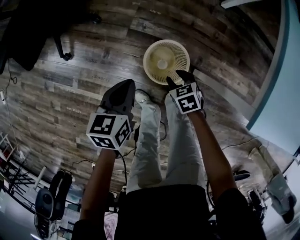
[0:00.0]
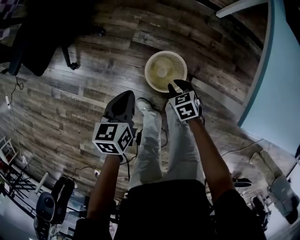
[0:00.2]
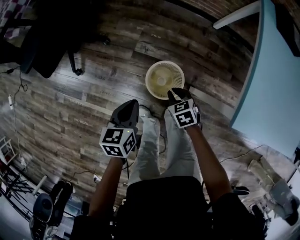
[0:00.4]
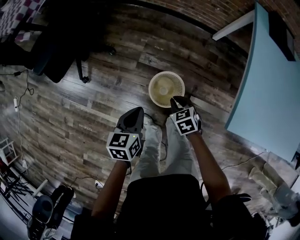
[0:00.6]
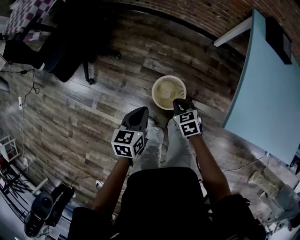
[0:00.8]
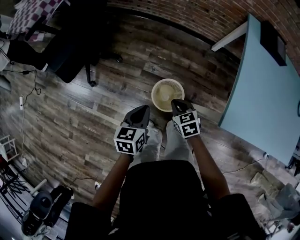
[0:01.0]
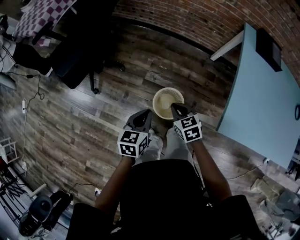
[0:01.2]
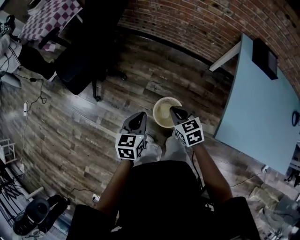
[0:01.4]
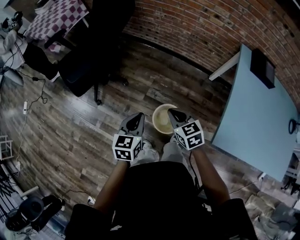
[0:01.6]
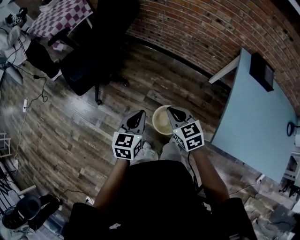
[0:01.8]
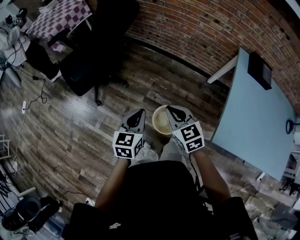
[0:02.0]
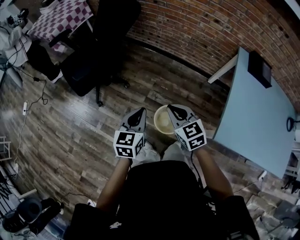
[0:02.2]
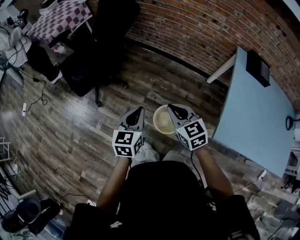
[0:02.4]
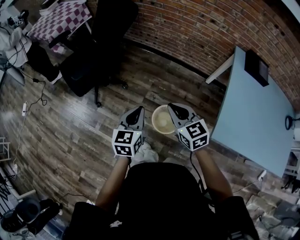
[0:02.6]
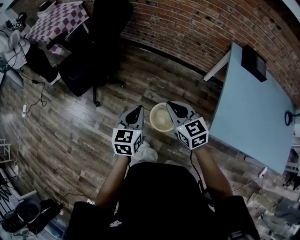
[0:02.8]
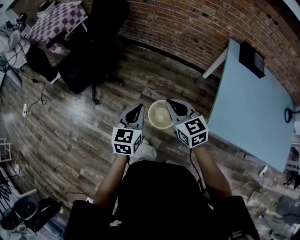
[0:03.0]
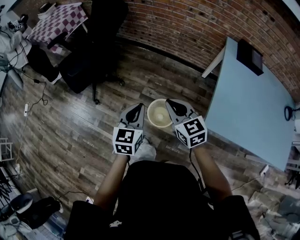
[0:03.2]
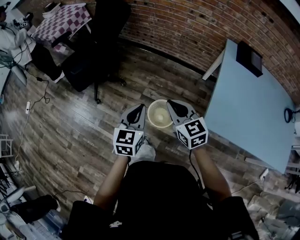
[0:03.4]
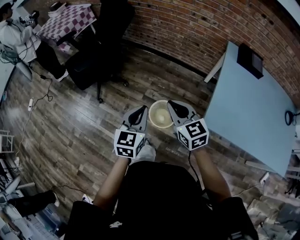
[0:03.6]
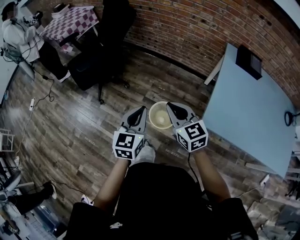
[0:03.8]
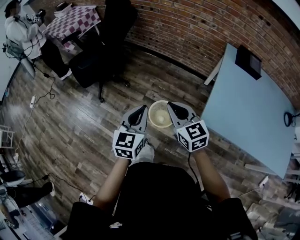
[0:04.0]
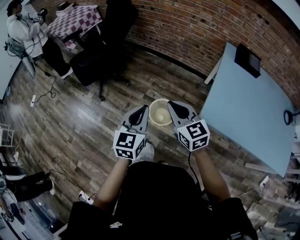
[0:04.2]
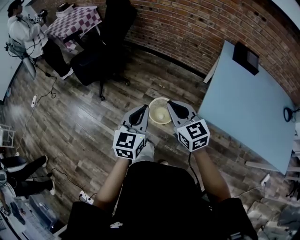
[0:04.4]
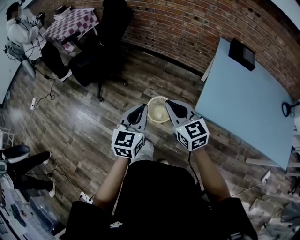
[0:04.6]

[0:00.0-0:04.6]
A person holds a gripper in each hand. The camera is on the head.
0:00.0 to 0:01.6: The grippers both shift upward by some 35 cm. The right gripper rotates approximately 30 degrees, and closes its fingers.
0:01.6 to 0:03.0: Both grippers move upward and backward, about 10 cm.
0:03.0 to 0:04.6: The right gripper travels backward by roughly 20 cm; the left gripper goes roughly 20 cm backward and upward.

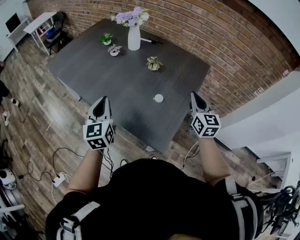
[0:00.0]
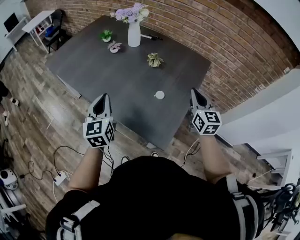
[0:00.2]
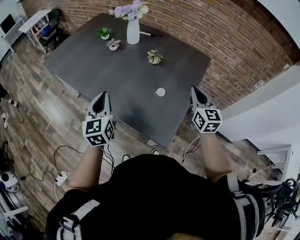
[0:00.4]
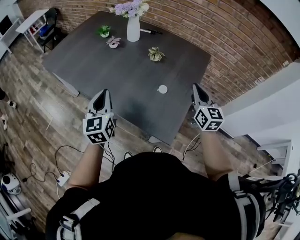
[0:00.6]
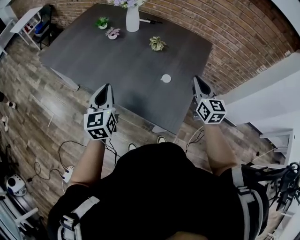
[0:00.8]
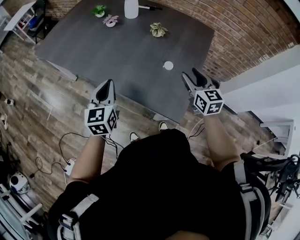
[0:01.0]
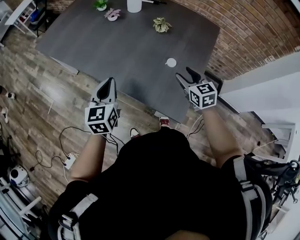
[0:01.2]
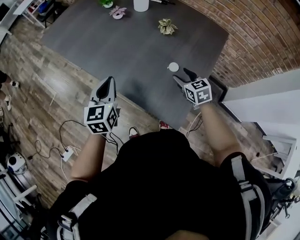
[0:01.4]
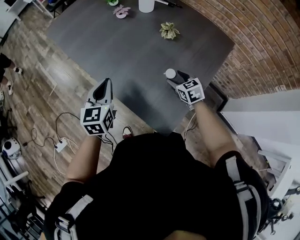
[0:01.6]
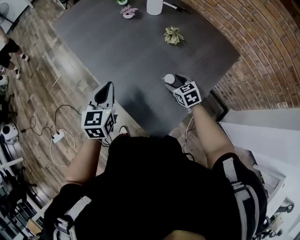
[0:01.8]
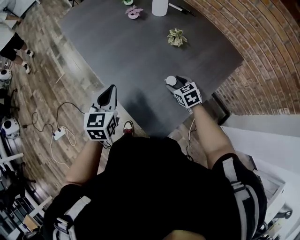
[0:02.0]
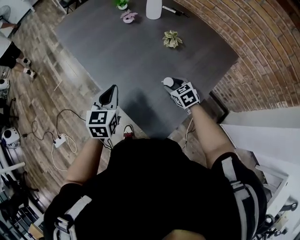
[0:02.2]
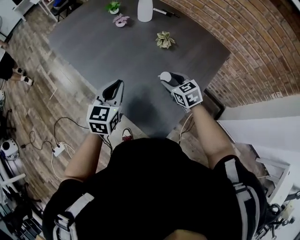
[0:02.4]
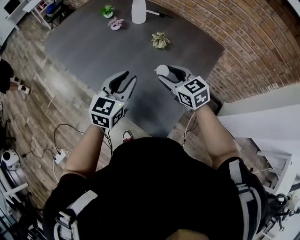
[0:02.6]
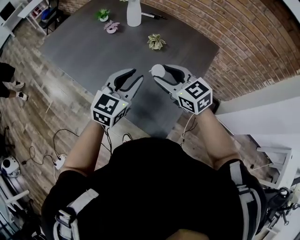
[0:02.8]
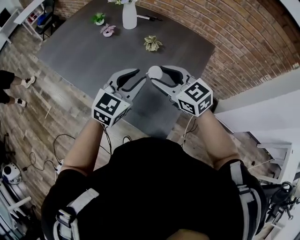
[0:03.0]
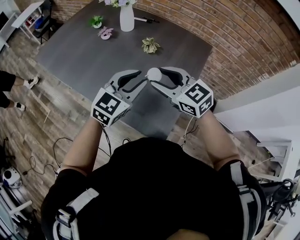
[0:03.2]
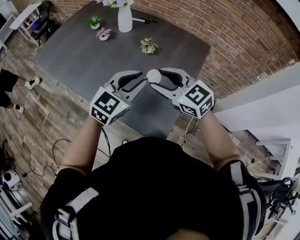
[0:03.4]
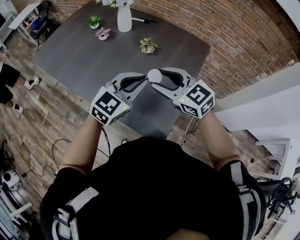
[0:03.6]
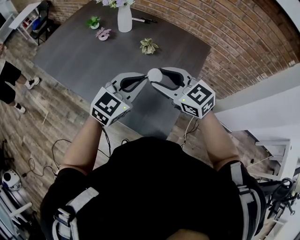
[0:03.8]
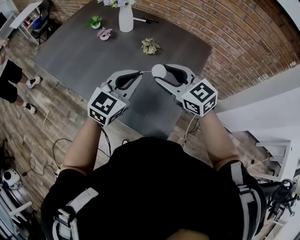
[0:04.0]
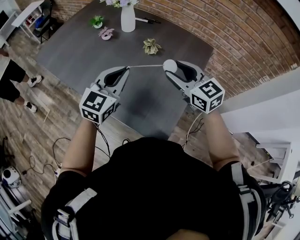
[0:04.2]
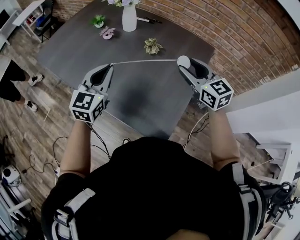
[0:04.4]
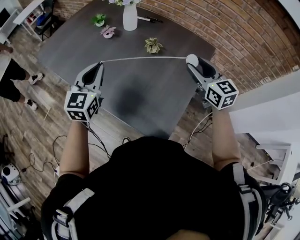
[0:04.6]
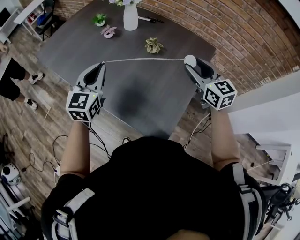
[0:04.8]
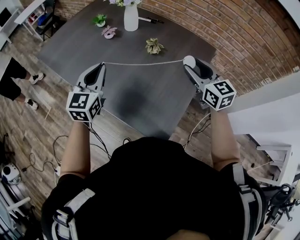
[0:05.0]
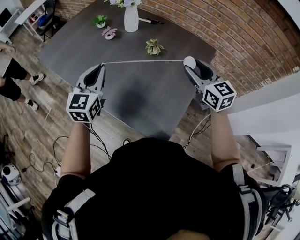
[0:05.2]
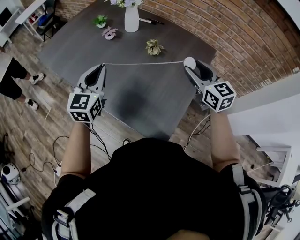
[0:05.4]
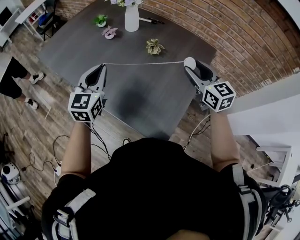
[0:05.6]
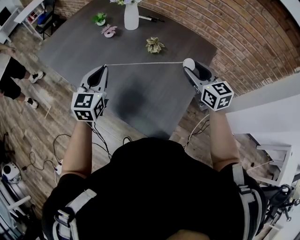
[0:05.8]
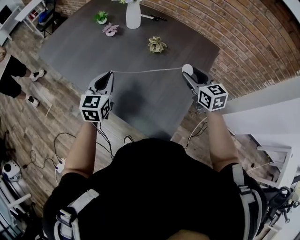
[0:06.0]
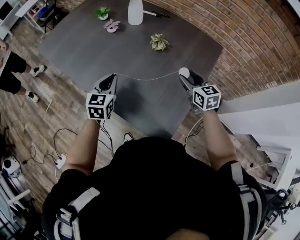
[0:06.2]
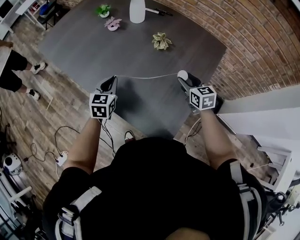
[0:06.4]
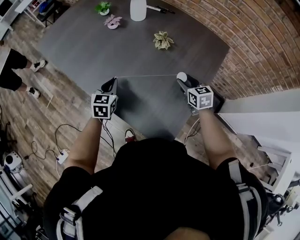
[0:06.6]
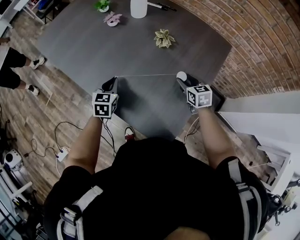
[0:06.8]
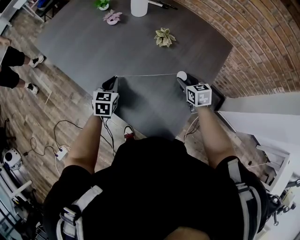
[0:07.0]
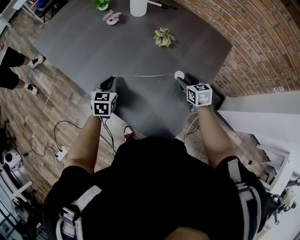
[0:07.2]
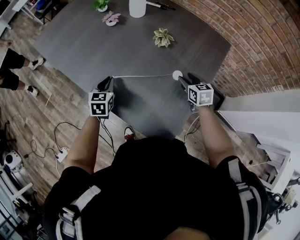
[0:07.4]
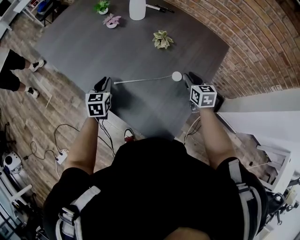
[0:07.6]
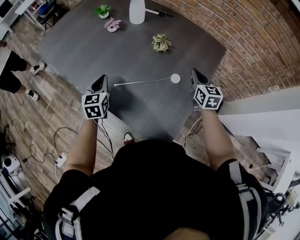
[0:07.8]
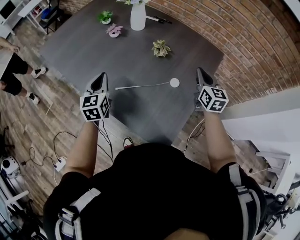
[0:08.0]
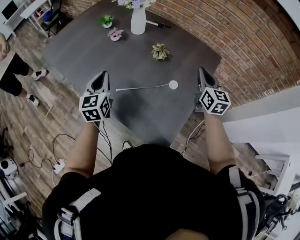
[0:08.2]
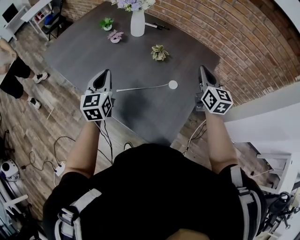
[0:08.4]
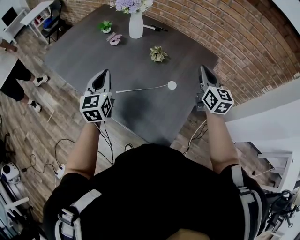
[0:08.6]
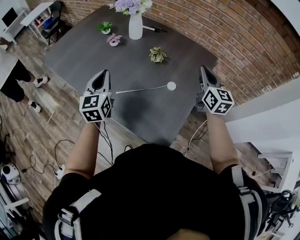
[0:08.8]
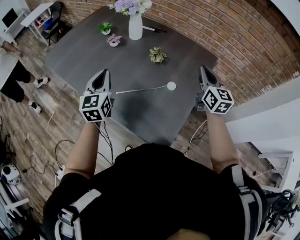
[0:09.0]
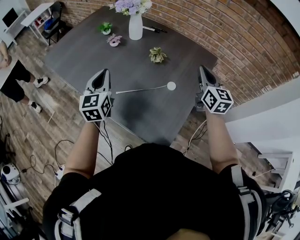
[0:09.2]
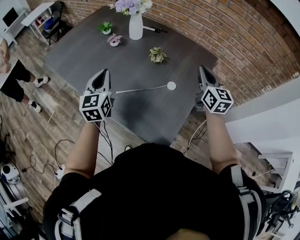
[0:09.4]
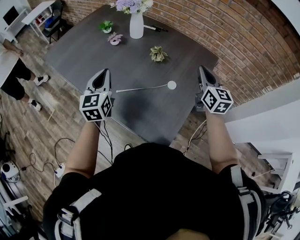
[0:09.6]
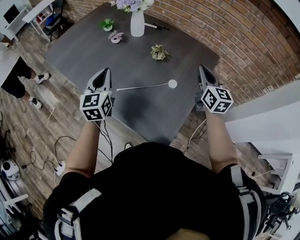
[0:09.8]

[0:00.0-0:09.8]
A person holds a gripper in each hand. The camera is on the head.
0:00.0 to 0:01.4: The left gripper travels downward by approximately 5 cm; the right gripper shifts some 20 cm downward and to the left, swivels approximately 30 degrees, and opens its fingers.
0:01.4 to 0:02.8: The left gripper goes about 20 cm to the right and upward, turns by about 30 degrees, and opens up. Meanwhile the right gripper is displaced upward by some 15 cm, and turns by some 30 degrees.
0:02.8 to 0:04.2: The left gripper closes its fingers. Meanwhile the right gripper is displaced to the right by about 5 cm.
0:04.2 to 0:05.6: The right gripper travels to the right by roughly 5 cm. The left gripper shifts about 10 cm to the left.
0:05.6 to 0:07.0: The two grippers go about 25 cm downward. The right gripper changes its angle by approximately 30 degrees. Meanwhile the left gripper swivels some 30 degrees.
0:07.0 to 0:08.4: Both grippers travel together upward, approximately 20 cm. The left gripper changes its angle by about 30 degrees, while the right gripper angles its fingers upward, by roughly 30 degrees, and closes up.
0:08.4 to 0:09.8: The grippers stay close to where they were, moving slightly.

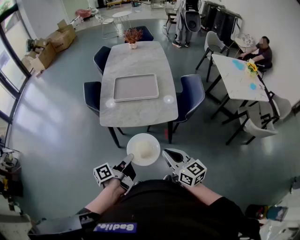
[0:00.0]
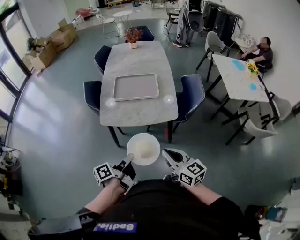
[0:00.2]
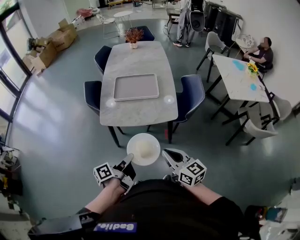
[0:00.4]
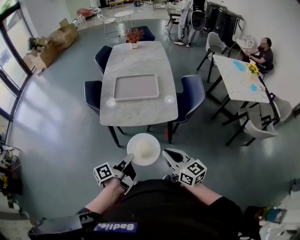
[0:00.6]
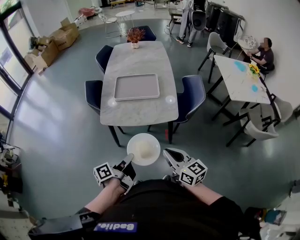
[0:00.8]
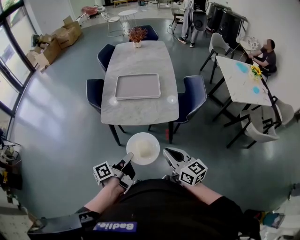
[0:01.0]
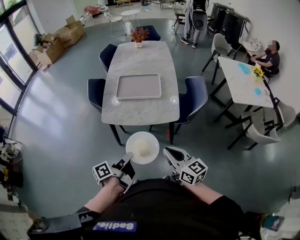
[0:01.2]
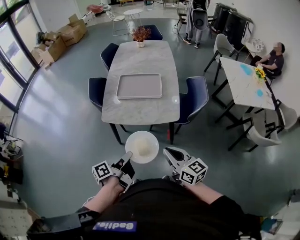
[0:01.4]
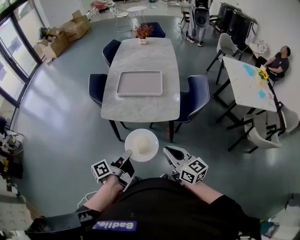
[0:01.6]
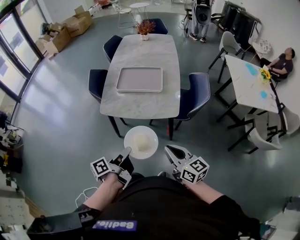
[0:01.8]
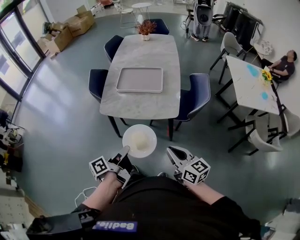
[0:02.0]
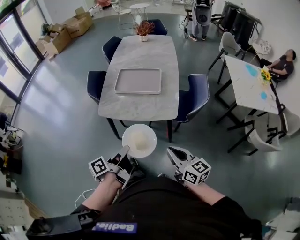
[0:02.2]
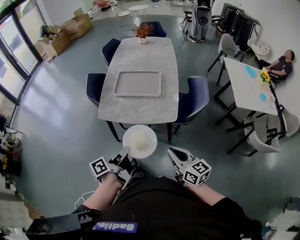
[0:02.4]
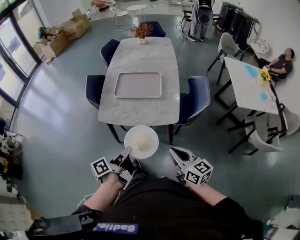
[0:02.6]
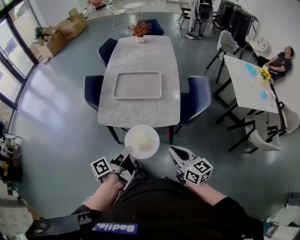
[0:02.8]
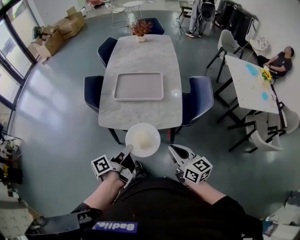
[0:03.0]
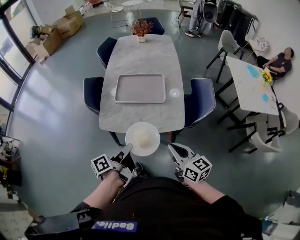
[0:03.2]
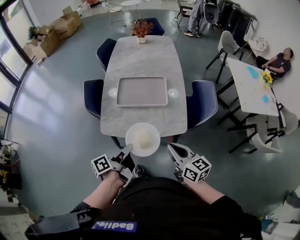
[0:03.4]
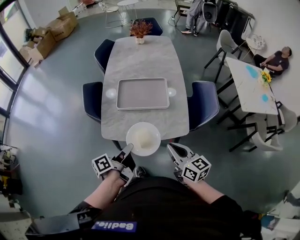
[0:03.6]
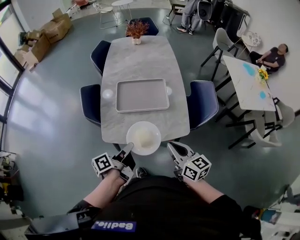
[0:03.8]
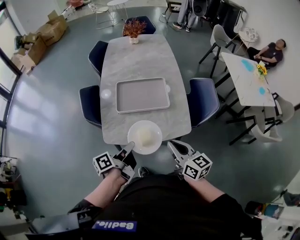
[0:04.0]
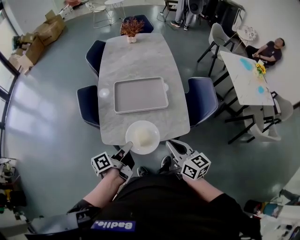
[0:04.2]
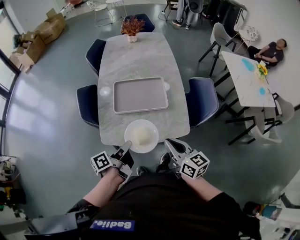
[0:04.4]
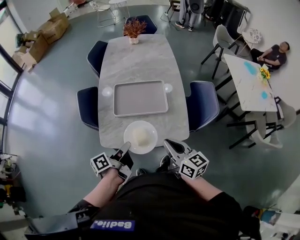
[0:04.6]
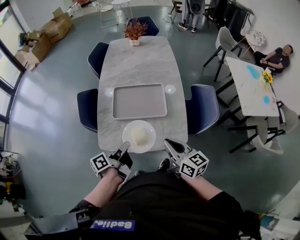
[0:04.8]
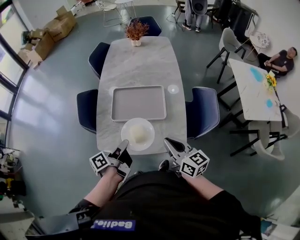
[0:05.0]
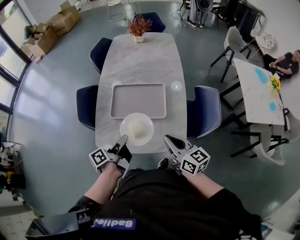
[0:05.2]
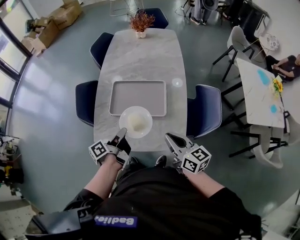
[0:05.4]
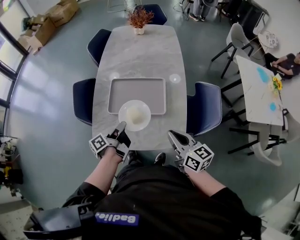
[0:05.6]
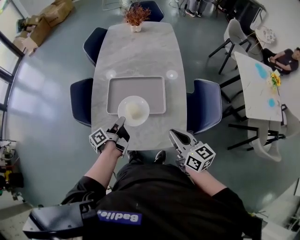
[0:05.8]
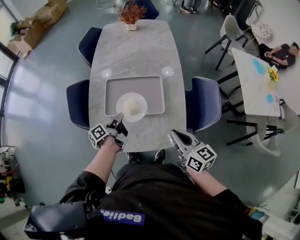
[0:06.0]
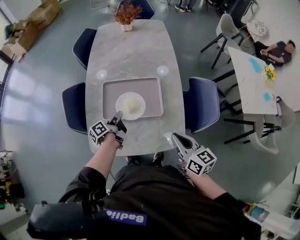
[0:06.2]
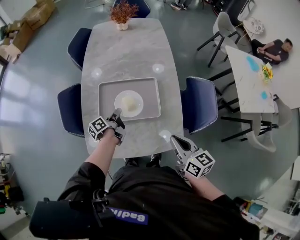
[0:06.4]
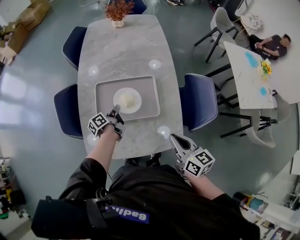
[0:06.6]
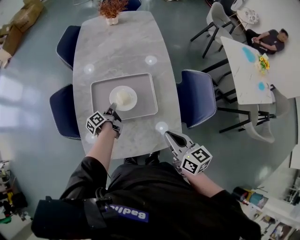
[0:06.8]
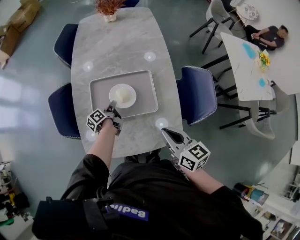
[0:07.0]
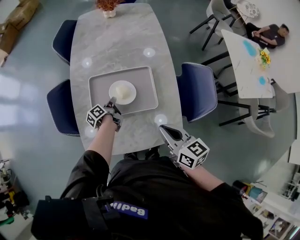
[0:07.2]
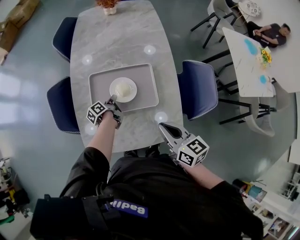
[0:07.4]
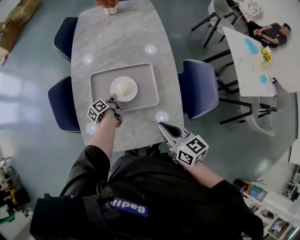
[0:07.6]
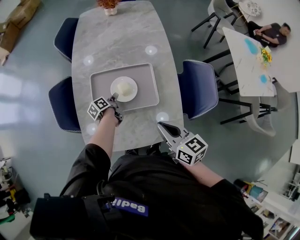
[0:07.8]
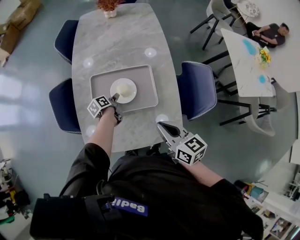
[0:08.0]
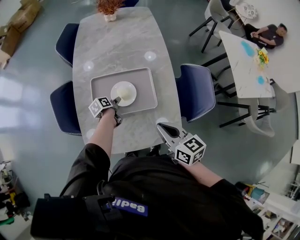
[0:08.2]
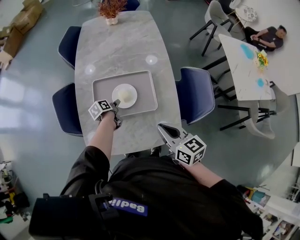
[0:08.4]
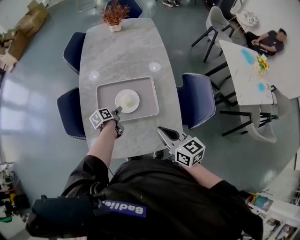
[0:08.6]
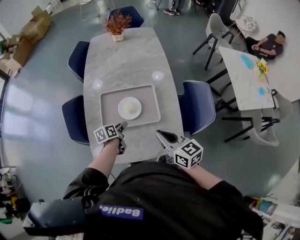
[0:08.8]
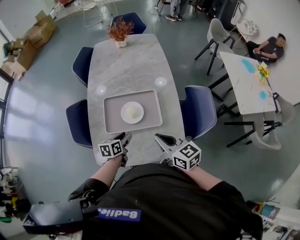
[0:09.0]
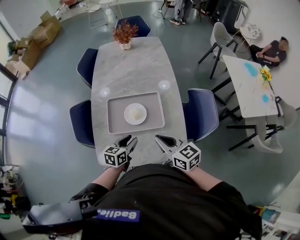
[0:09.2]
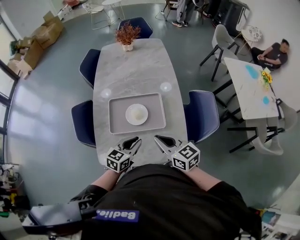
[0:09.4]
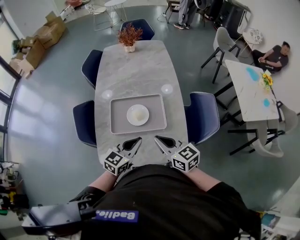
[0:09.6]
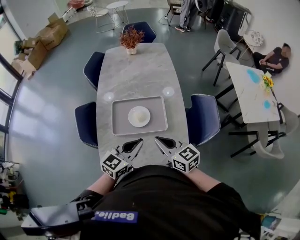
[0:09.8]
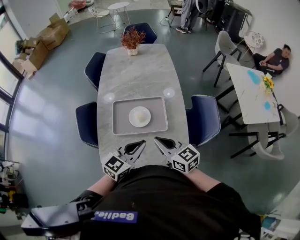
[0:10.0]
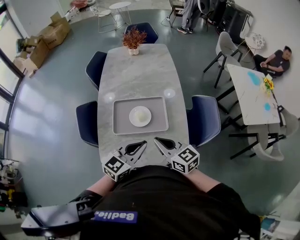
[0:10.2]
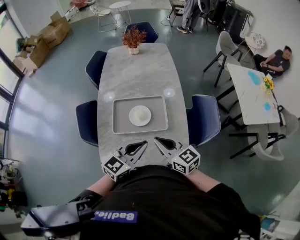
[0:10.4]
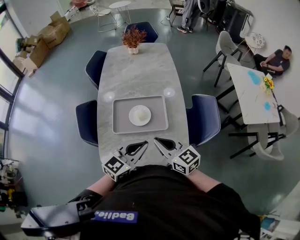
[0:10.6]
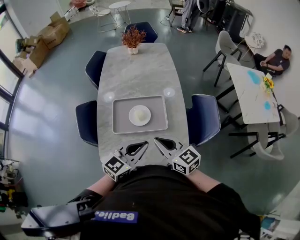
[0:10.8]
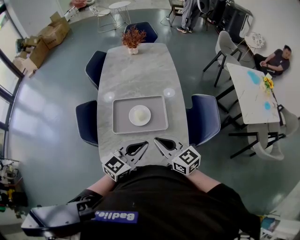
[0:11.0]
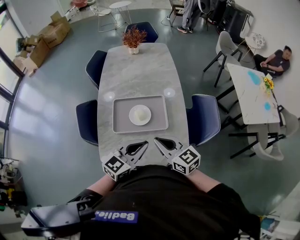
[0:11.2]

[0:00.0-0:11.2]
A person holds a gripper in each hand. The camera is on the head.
0:01.6 to 0:03.2: The right gripper moves about 10 cm.
0:03.2 to 0:04.8: The right gripper ends up about 15 cm from where it was.
0:04.8 to 0:06.4: The right gripper shifts by approximately 10 cm.
0:06.4 to 0:08.0: The right gripper moves approximately 5 cm.
0:08.0 to 0:09.6: The right gripper ends up roughly 5 cm from where it was.
